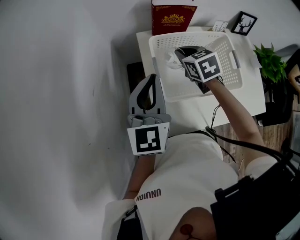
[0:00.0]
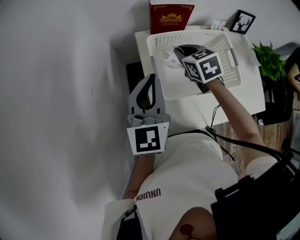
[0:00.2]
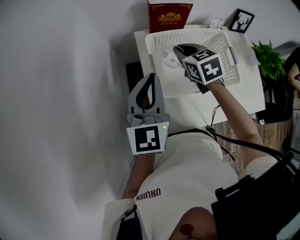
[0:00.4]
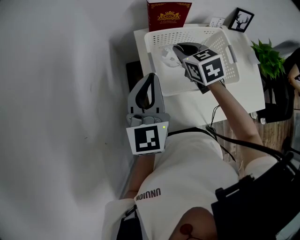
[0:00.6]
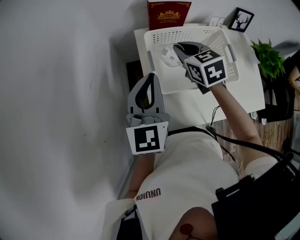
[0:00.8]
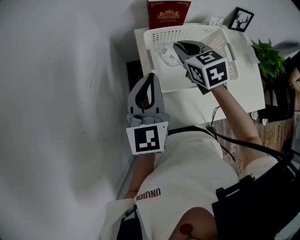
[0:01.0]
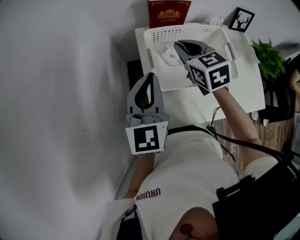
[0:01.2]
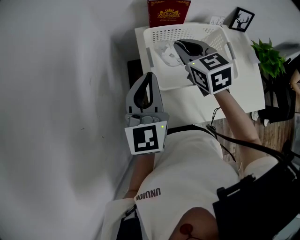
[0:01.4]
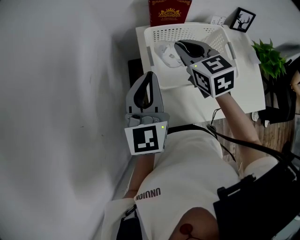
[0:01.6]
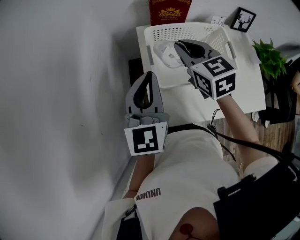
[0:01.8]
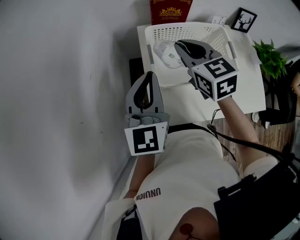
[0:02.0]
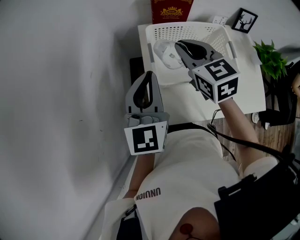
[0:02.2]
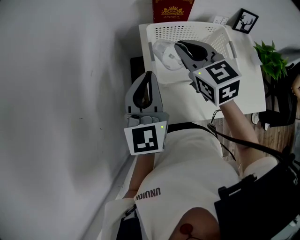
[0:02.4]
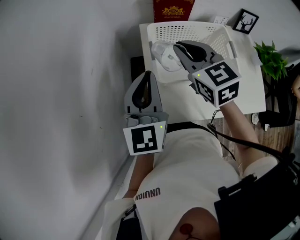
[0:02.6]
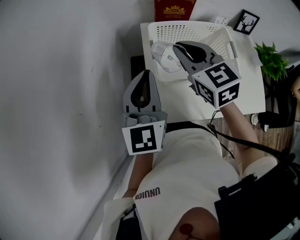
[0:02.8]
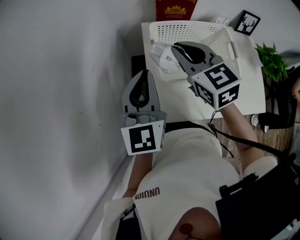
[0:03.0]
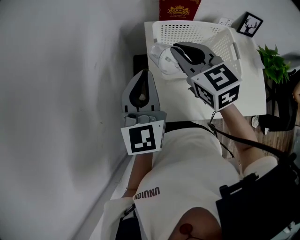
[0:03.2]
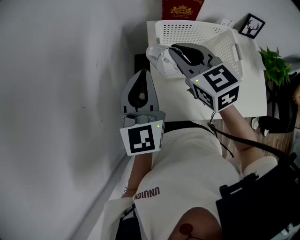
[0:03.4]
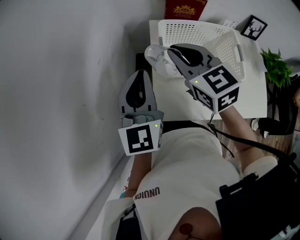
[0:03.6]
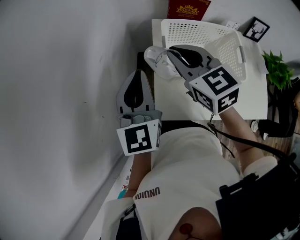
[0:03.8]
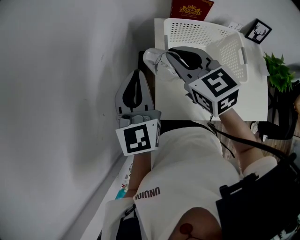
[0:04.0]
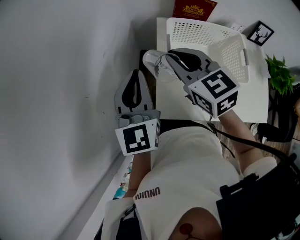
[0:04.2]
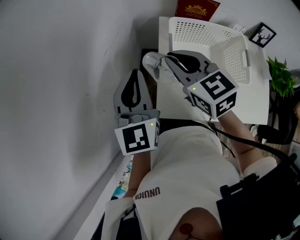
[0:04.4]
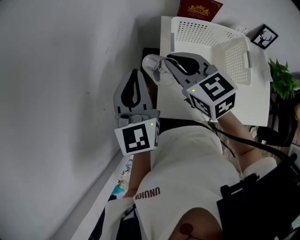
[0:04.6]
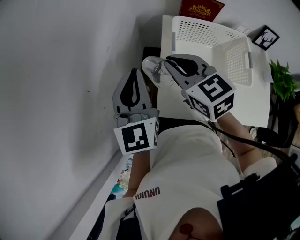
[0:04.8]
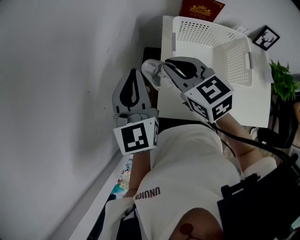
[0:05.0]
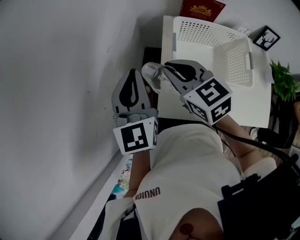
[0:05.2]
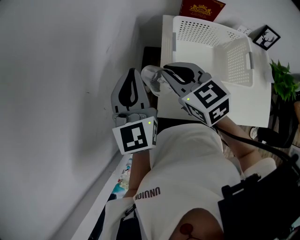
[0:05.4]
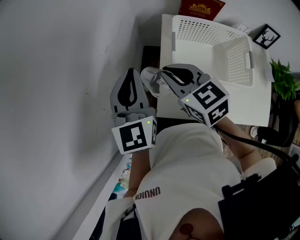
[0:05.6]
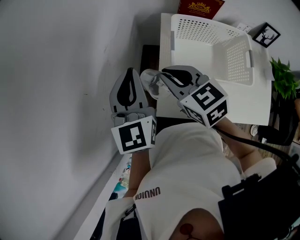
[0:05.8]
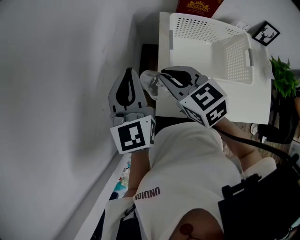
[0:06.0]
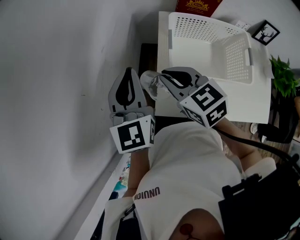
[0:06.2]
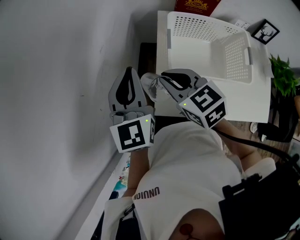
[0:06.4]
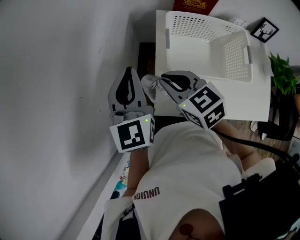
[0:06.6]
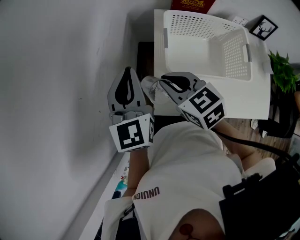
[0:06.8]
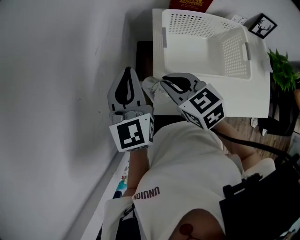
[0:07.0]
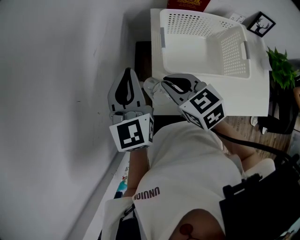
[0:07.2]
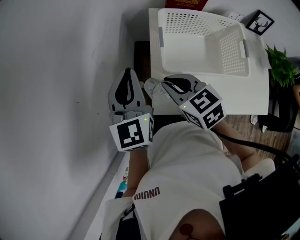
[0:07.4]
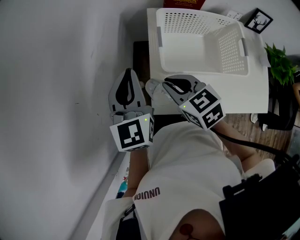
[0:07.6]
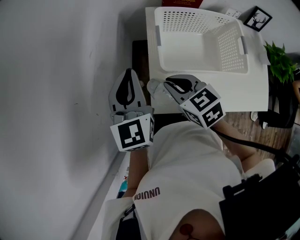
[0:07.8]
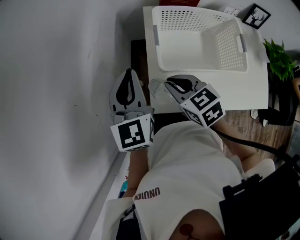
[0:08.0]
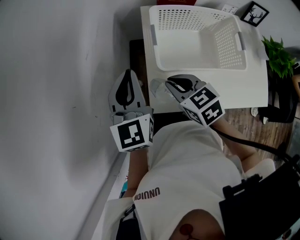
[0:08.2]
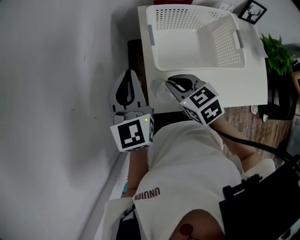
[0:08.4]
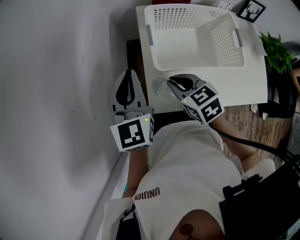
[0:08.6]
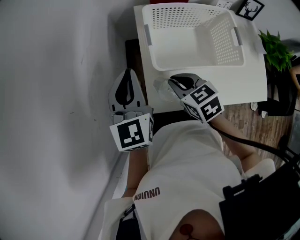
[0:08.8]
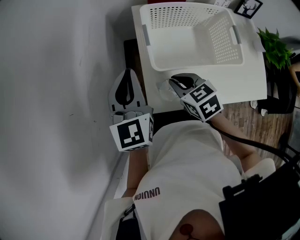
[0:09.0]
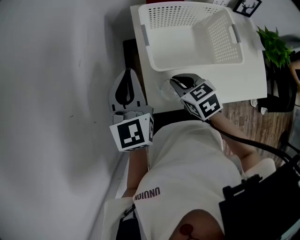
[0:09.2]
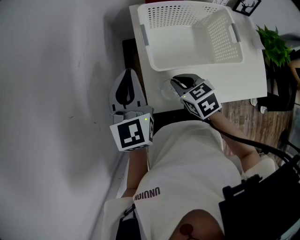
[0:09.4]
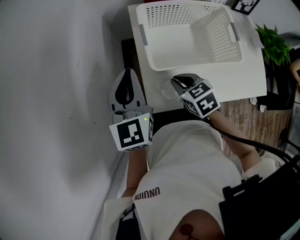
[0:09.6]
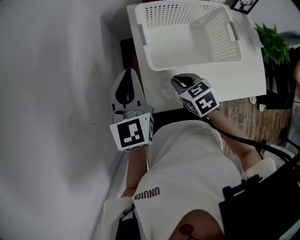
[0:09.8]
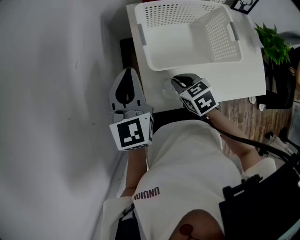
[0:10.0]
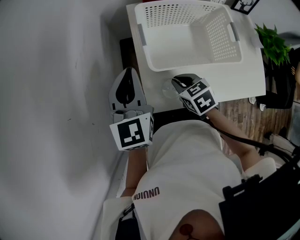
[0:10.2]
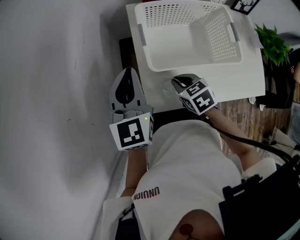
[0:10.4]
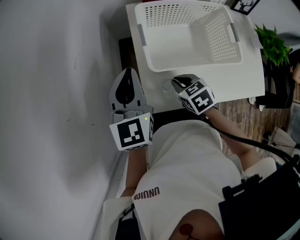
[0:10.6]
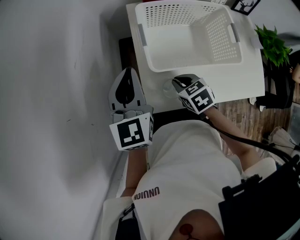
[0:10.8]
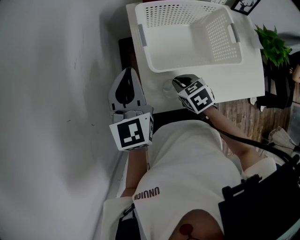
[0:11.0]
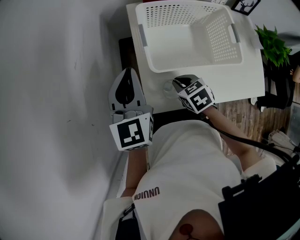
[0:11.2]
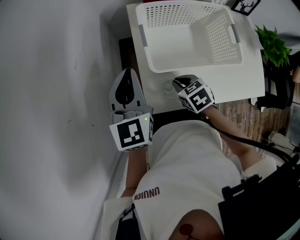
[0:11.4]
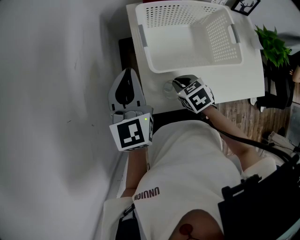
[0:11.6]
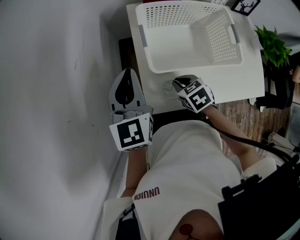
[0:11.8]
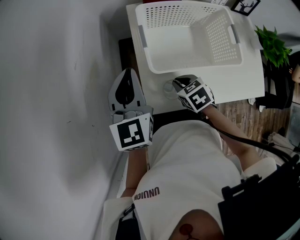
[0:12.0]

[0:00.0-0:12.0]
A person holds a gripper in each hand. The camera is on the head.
0:00.0 to 0:01.6: The right gripper moves upward and backward, roughly 10 cm.
0:01.6 to 0:03.0: The right gripper ends up roughly 5 cm from where it was.
0:03.0 to 0:04.4: The two grippers go about 5 cm to the left.
0:04.4 to 0:06.0: The right gripper heads downward, covering roughly 5 cm.
0:06.0 to 0:07.6: The right gripper moves downward, some 5 cm.
0:07.6 to 0:09.0: The right gripper moves downward, about 5 cm.
0:09.0 to 0:10.4: The right gripper goes approximately 5 cm downward.
0:10.4 to 0:12.0: The grippers stay close to where they were, moving slightly.

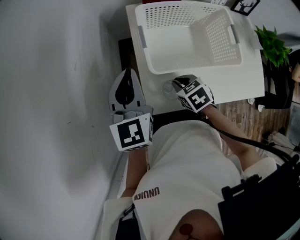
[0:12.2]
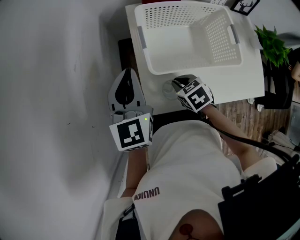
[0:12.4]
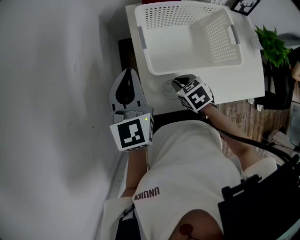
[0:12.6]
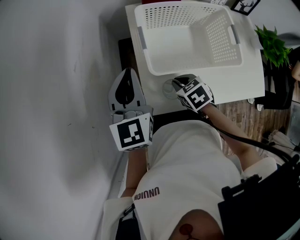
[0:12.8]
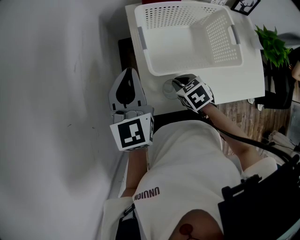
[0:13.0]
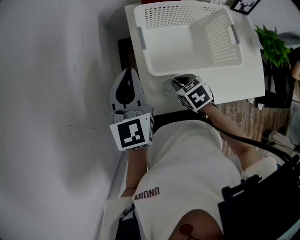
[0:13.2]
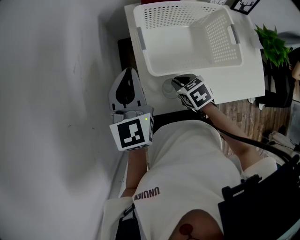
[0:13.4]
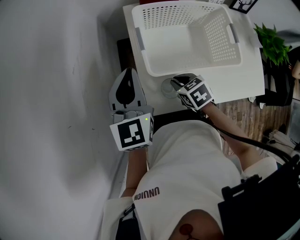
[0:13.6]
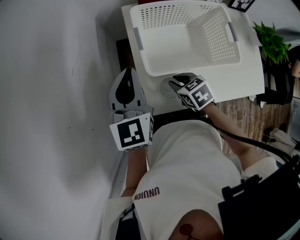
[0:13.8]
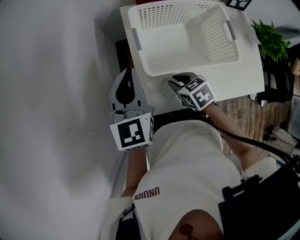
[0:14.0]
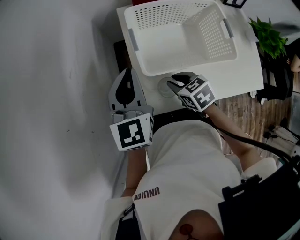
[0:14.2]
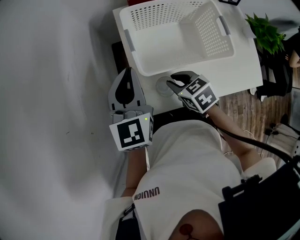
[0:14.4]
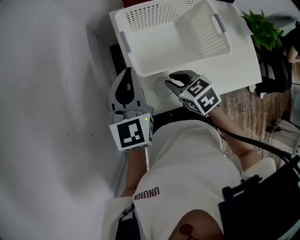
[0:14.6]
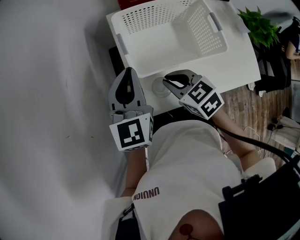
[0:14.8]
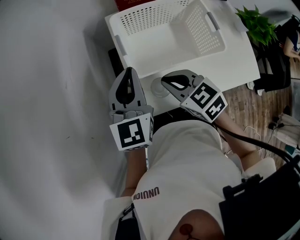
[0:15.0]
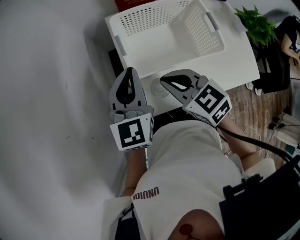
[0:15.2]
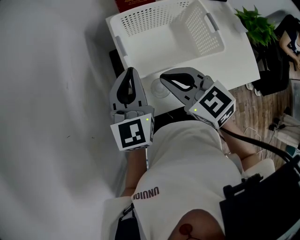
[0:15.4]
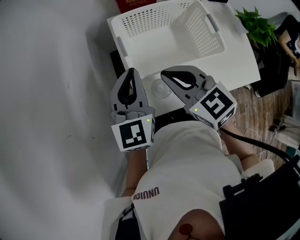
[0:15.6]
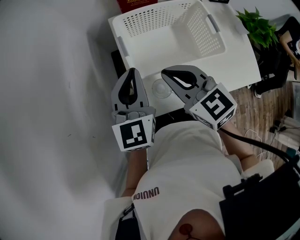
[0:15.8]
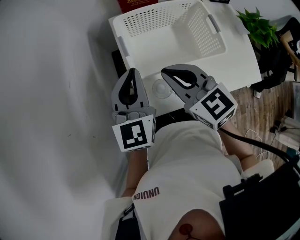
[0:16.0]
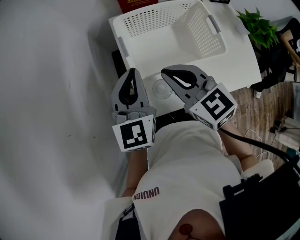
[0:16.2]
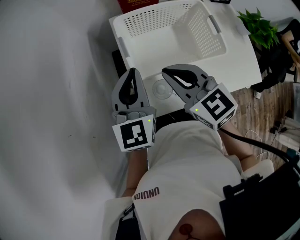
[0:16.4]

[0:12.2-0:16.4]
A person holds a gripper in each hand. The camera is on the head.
0:12.2 to 0:13.6: Neither gripper changes place.
0:13.6 to 0:15.0: The right gripper shifts about 15 cm upward, and turns by some 20 degrees. The left gripper changes place by approximately 5 cm.
0:15.0 to 0:16.4: The right gripper moves upward, some 10 cm.

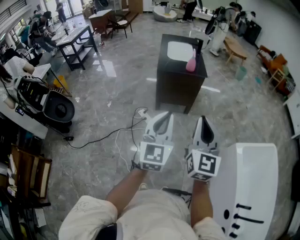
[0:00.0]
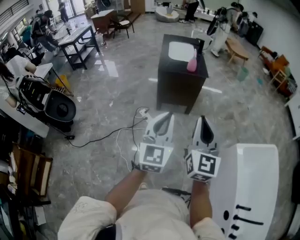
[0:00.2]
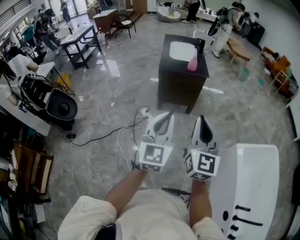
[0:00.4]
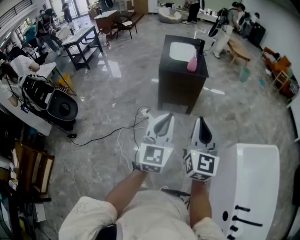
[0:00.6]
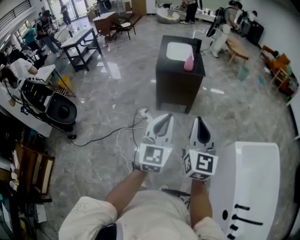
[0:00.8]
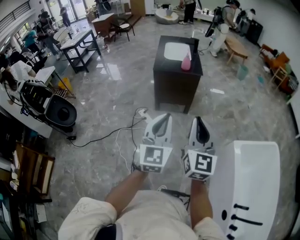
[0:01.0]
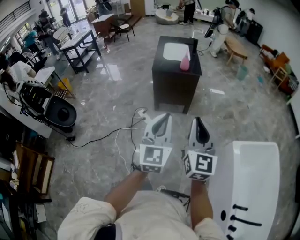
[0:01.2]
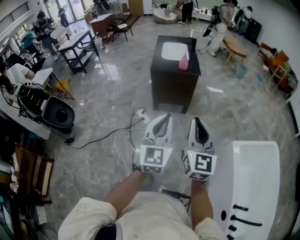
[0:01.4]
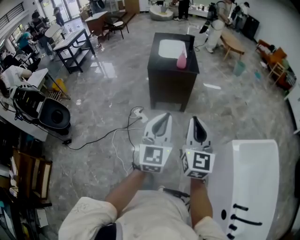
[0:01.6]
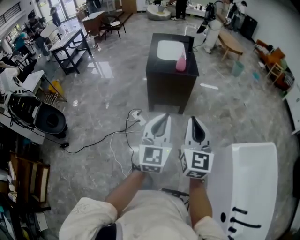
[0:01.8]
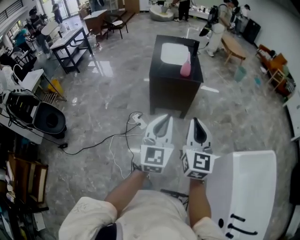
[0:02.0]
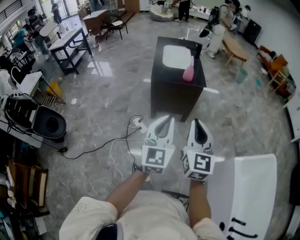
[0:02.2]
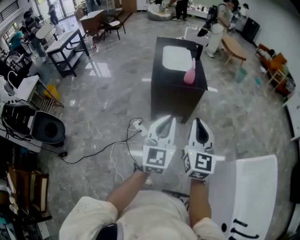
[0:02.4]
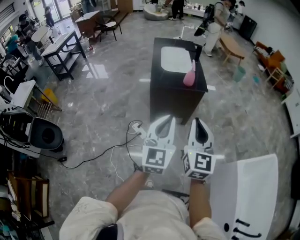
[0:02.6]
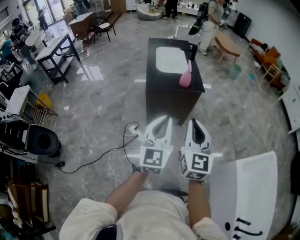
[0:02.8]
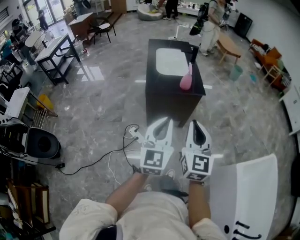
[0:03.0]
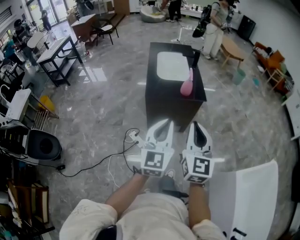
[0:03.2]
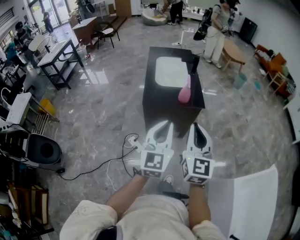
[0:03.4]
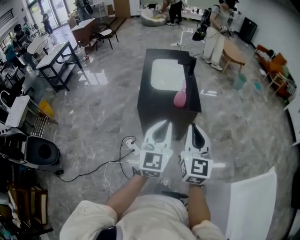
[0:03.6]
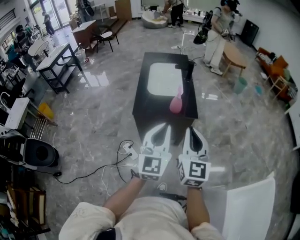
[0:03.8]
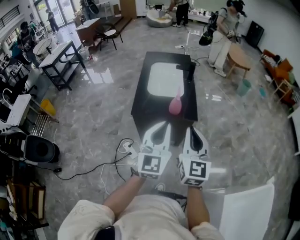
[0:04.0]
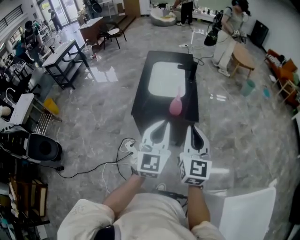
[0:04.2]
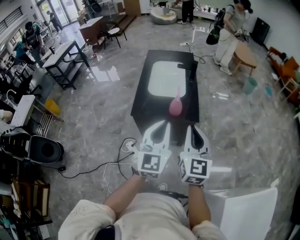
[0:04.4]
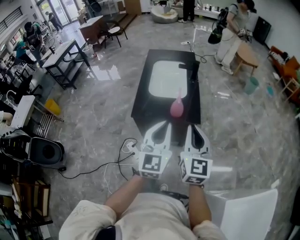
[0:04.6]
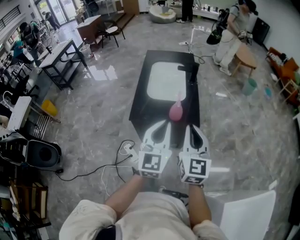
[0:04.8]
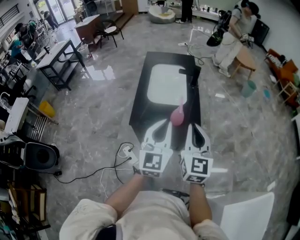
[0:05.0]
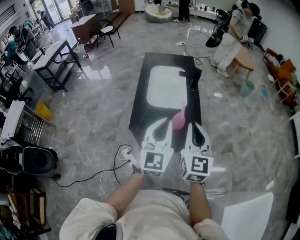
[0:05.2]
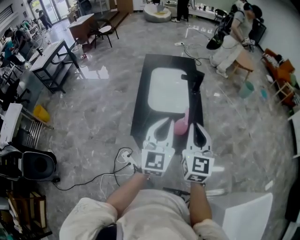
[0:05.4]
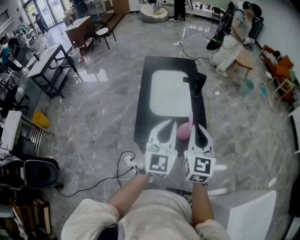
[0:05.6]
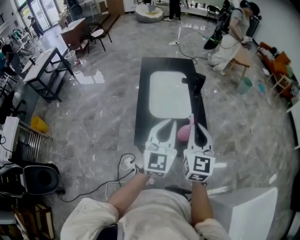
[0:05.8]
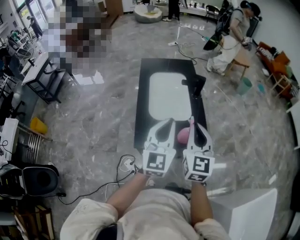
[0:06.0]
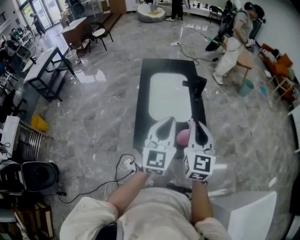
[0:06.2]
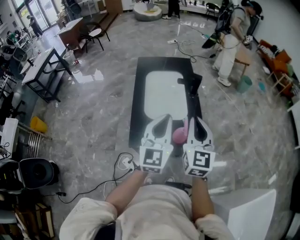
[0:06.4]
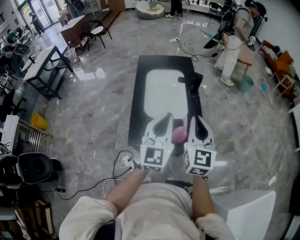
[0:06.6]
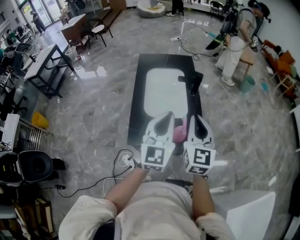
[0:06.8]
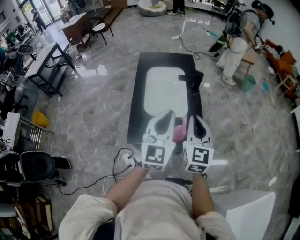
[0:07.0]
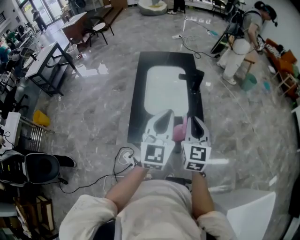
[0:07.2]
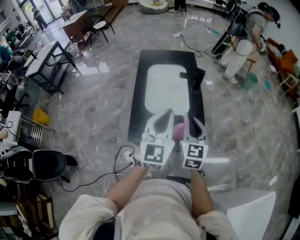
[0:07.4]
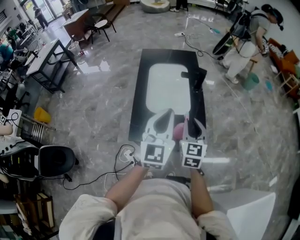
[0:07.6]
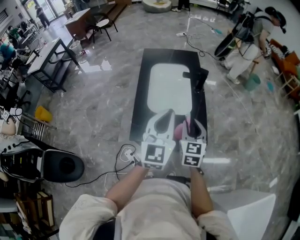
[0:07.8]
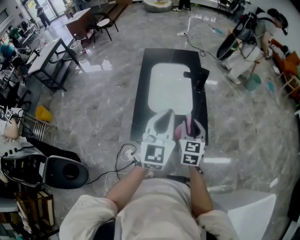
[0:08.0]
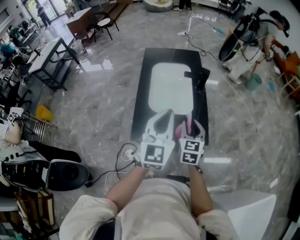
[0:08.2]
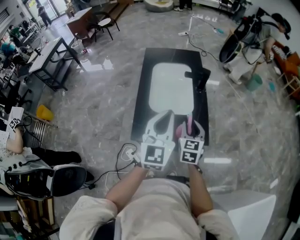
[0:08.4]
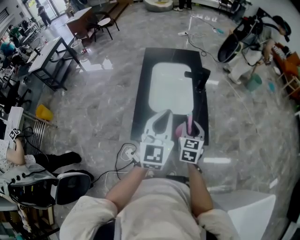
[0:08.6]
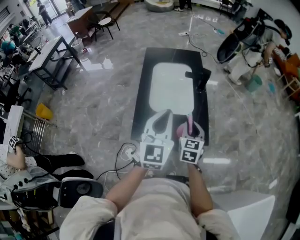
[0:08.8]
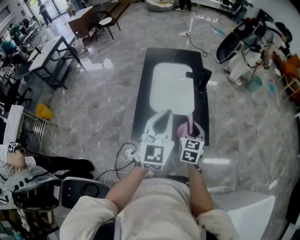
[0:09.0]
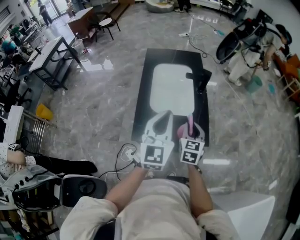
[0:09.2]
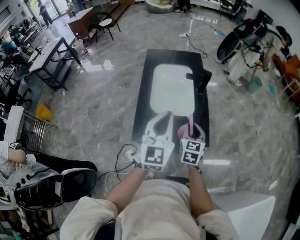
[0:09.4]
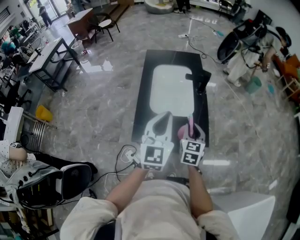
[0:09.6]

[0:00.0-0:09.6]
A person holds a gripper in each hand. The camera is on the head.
0:00.0 to 0:01.6: Both grippers travel together to the right, about 10 cm.
0:01.6 to 0:03.2: The grippers both shift forward by some 30 cm.
0:03.2 to 0:04.8: The two grippers go roughly 25 cm forward and to the right.
0:04.8 to 0:06.4: Both grippers move forward, about 20 cm.
0:06.4 to 0:08.0: The right gripper travels downward by some 15 cm, and opens up.
0:08.0 to 0:09.6: The grippers stay close to where they were, moving slightly.
